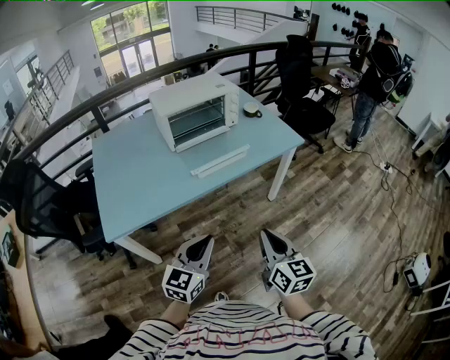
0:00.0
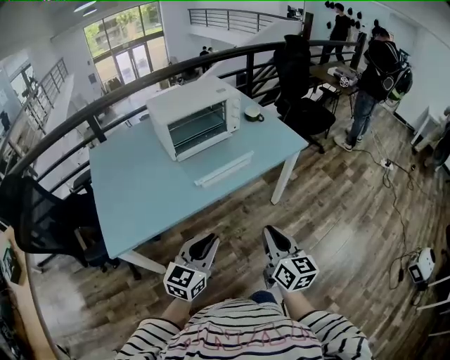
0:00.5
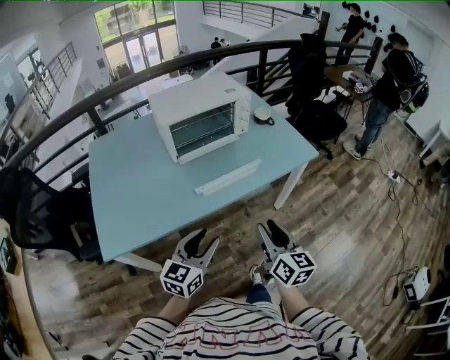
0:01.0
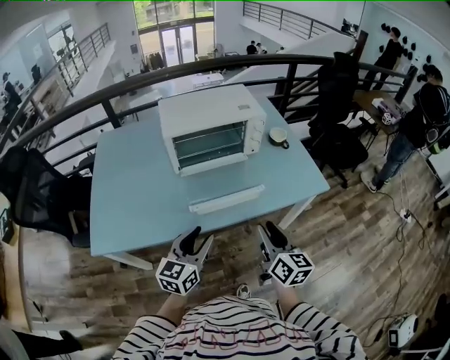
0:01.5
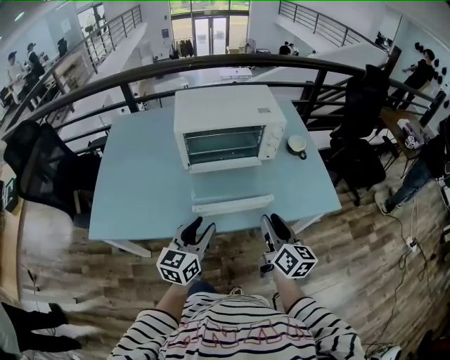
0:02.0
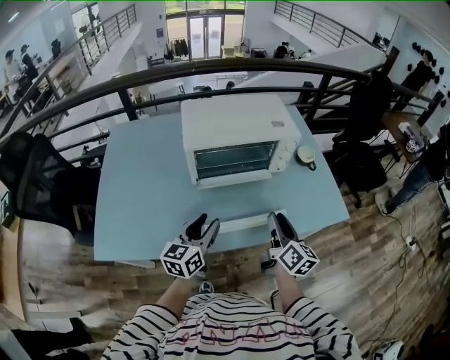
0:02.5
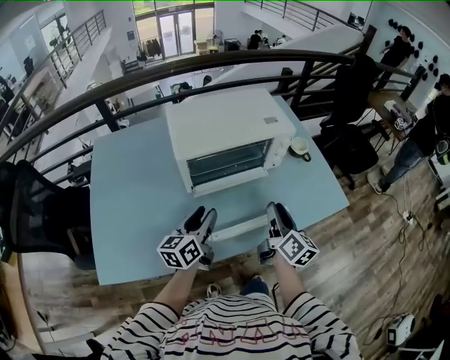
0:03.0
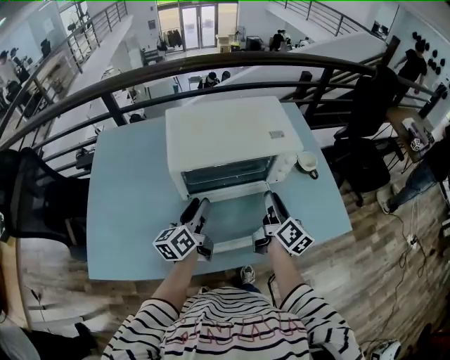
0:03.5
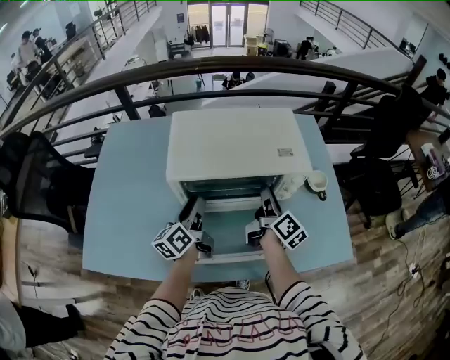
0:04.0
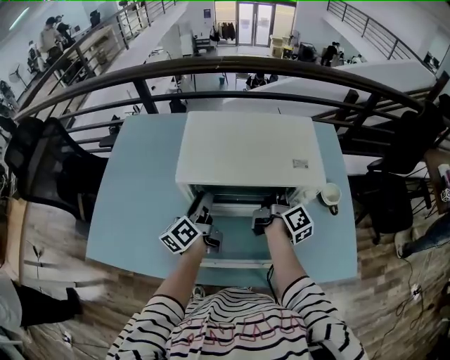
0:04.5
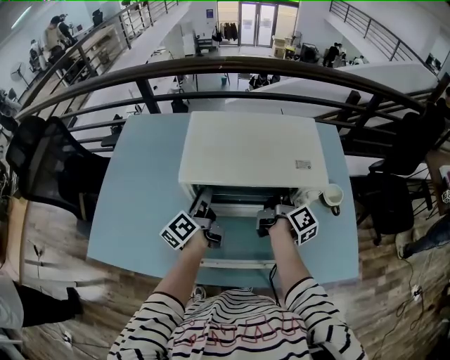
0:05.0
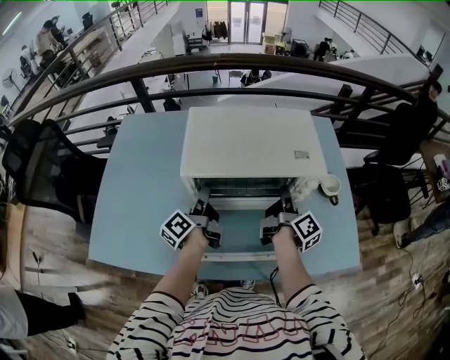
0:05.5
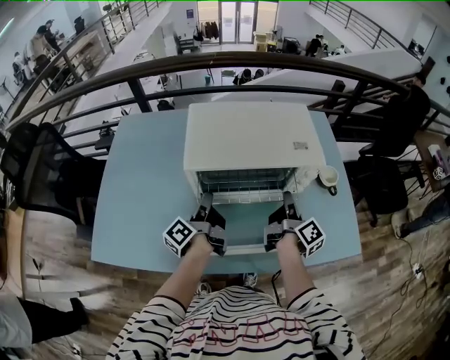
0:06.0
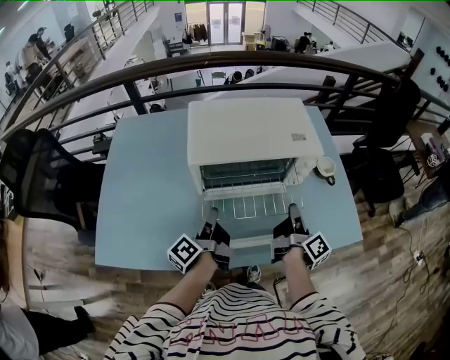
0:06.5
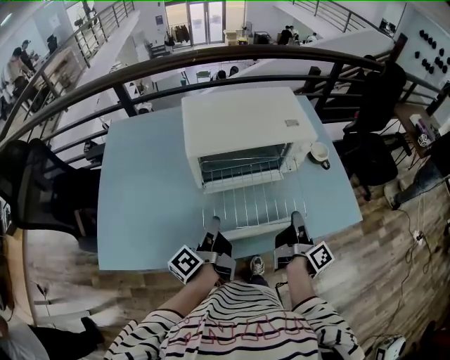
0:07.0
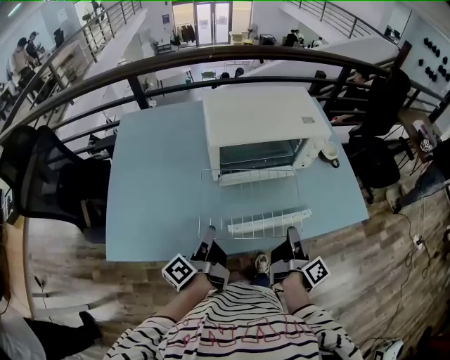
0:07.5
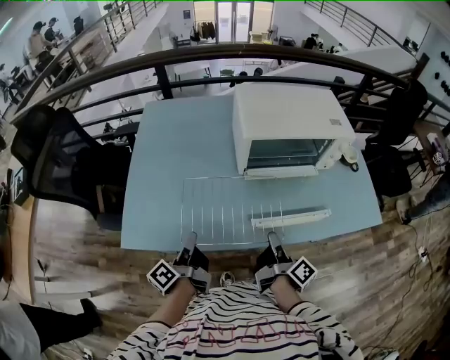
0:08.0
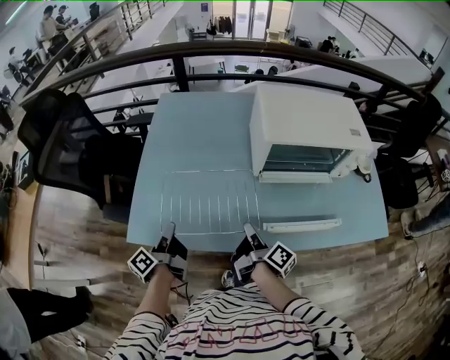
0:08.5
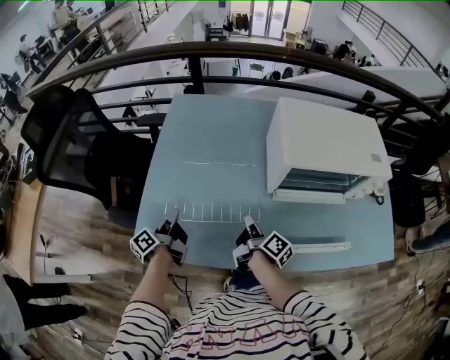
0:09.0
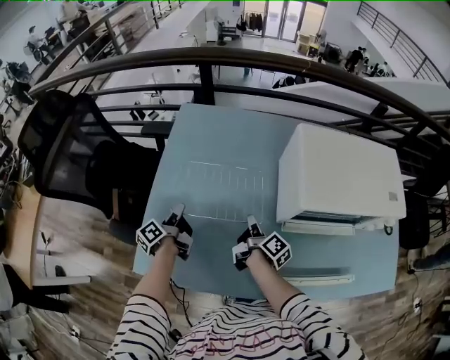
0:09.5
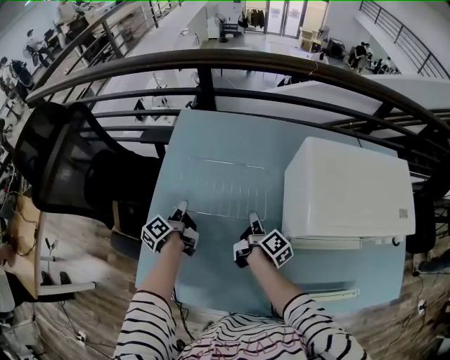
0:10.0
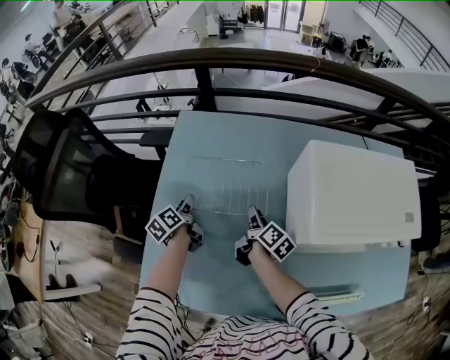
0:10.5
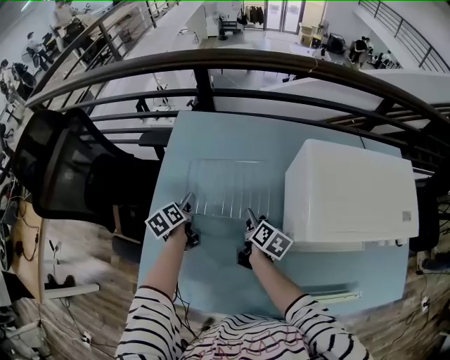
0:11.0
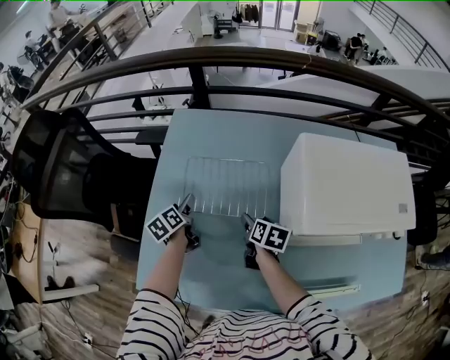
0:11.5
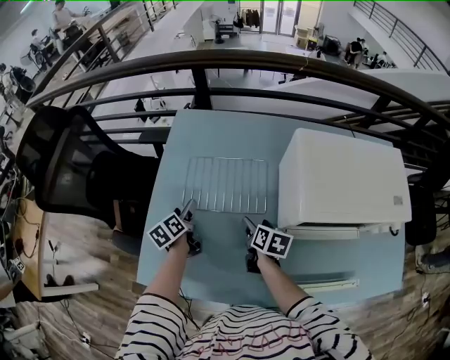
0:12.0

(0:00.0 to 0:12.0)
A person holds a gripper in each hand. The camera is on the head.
0:00.0 - 0:02.0: Both grippers move forward, roughly 35 cm. The right gripper changes its angle by approximately 20 degrees, and opens; the left gripper turns by about 30 degrees, and opens up.
0:02.0 - 0:04.0: Both grippers travel together forward, approximately 35 cm. The right gripper changes its angle by approximately 30 degrees, while the left gripper turns by about 40 degrees.
0:04.0 - 0:06.0: The right gripper ends up roughly 5 cm from where it was, while the left gripper rotates approximately 40 degrees, and closes up.
0:06.0 - 0:08.0: Both grippers travel together backward and to the left, about 35 cm.
0:08.0 - 0:10.0: The two grippers travel together, forward and to the left, roughly 40 cm. The left gripper rotates about 20 degrees.
0:10.0 - 0:12.0: The right gripper turns by about 50 degrees, and opens its fingers; the left gripper changes its angle by roughly 30 degrees, and opens up.

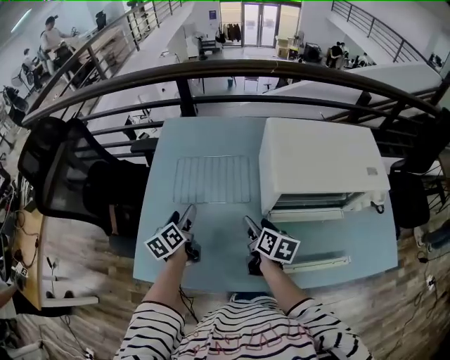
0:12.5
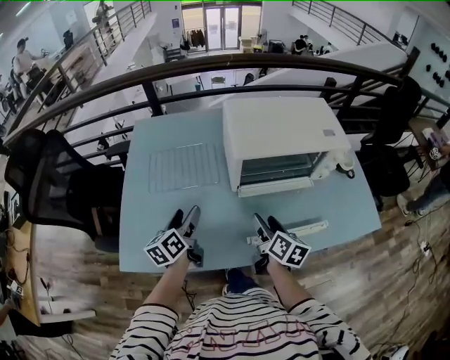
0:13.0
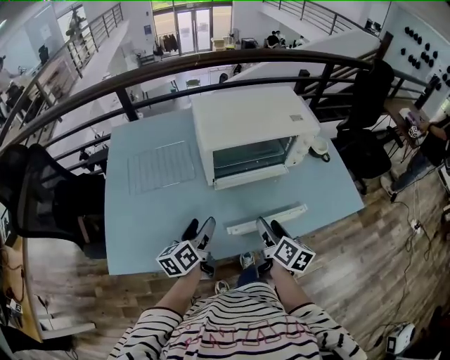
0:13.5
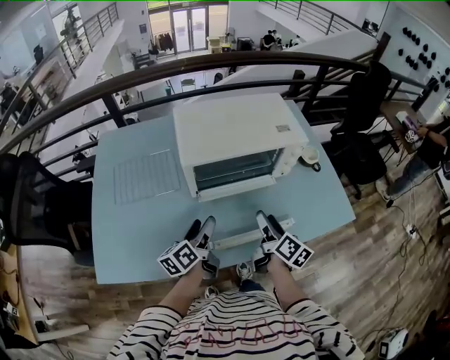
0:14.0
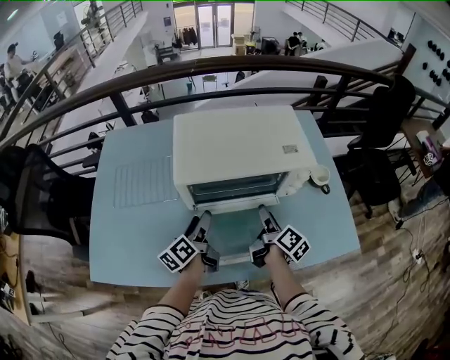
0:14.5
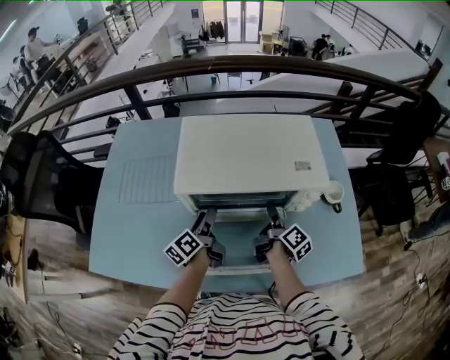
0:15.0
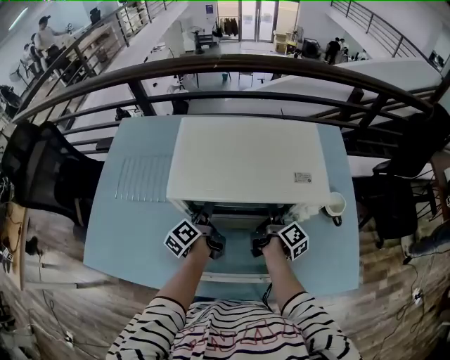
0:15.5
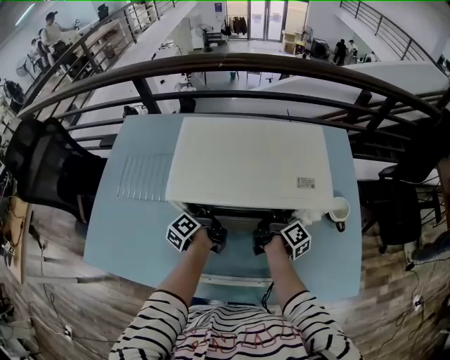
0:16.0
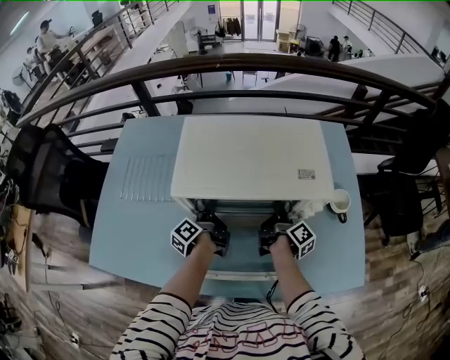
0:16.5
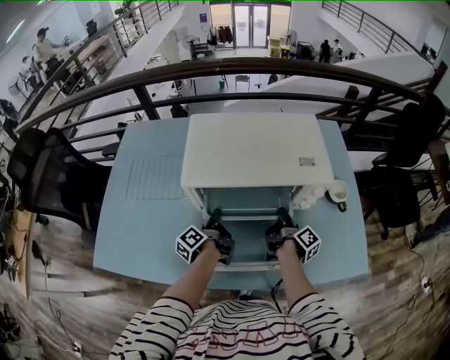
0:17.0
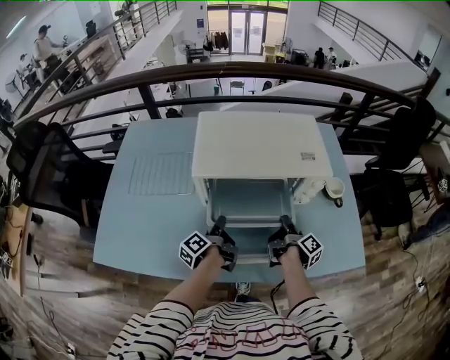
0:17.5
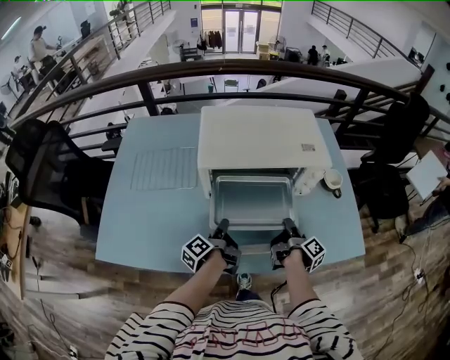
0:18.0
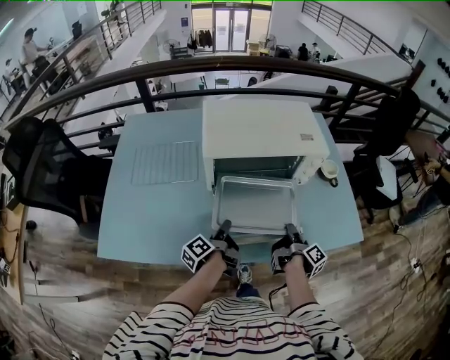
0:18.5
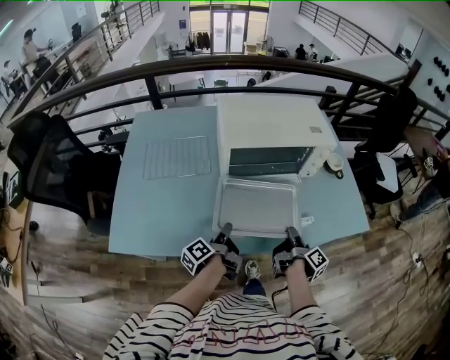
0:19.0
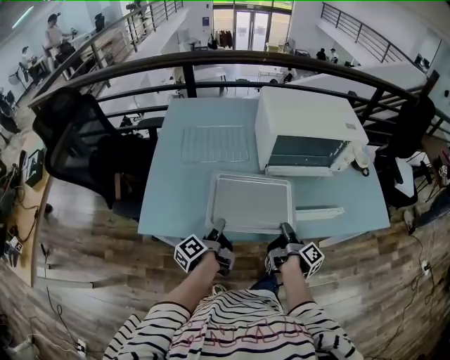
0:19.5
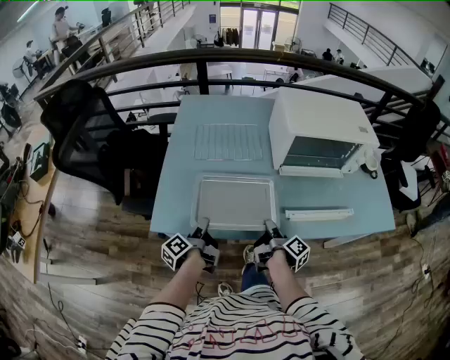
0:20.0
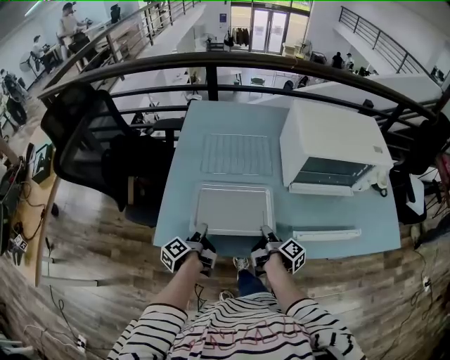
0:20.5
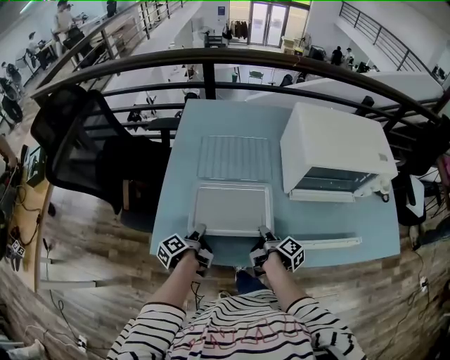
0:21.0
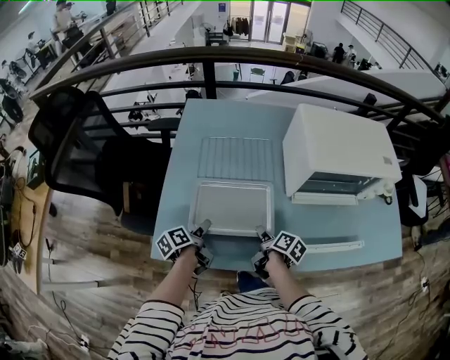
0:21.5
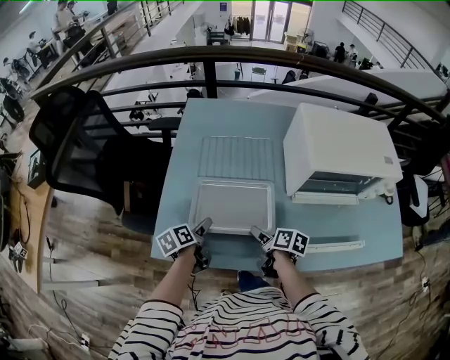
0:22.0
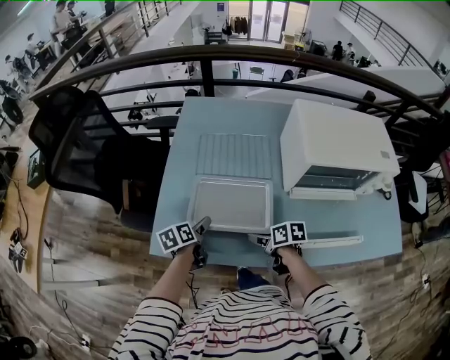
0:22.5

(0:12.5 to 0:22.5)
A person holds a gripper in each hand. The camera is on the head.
0:12.5 - 0:14.5: The grippers both shift to the right by approximately 35 cm. The right gripper swivels some 40 degrees; the left gripper turns by about 20 degrees.
0:14.5 - 0:16.5: The left gripper travels forward and downward by about 10 cm, turns by roughly 30 degrees, and closes up. Meanwhile the right gripper heads forward, covering about 10 cm, and closes up.
0:16.5 - 0:18.5: Both grippers move backward, some 25 cm.
0:18.5 - 0:20.5: The grippers both shift to the left by about 40 cm. The right gripper turns by about 20 degrees.
0:20.5 - 0:22.5: The left gripper travels forward by roughly 5 cm, rotates approximately 50 degrees, and opens up, while the right gripper turns by approximately 70 degrees, and opens.

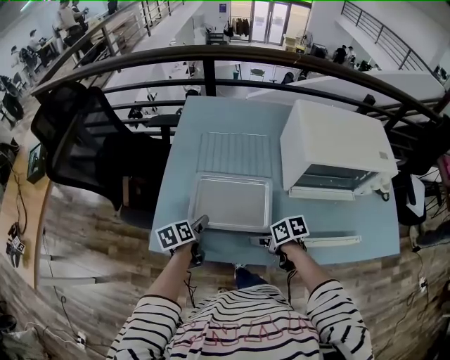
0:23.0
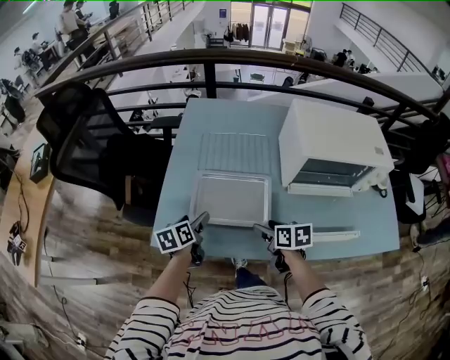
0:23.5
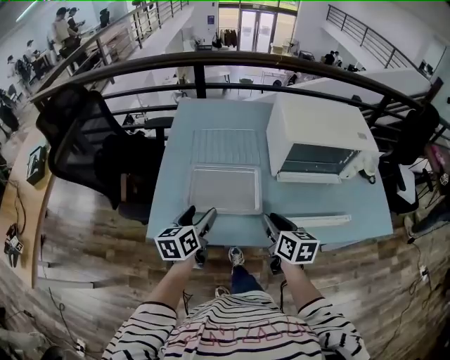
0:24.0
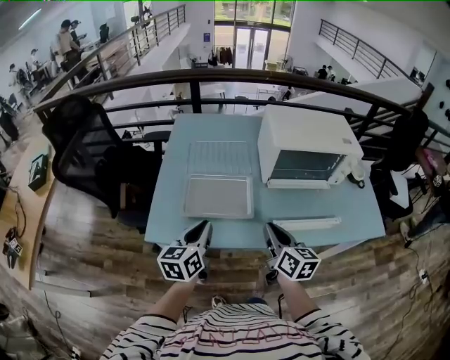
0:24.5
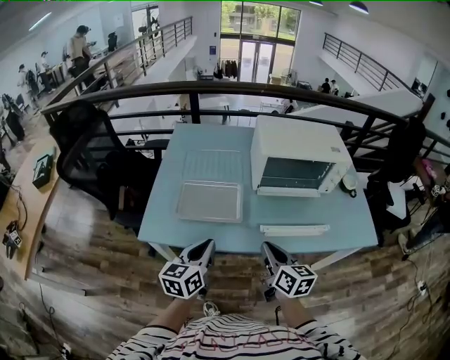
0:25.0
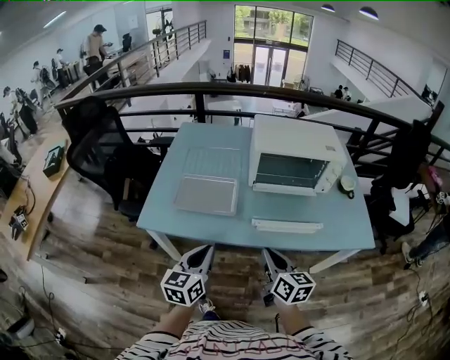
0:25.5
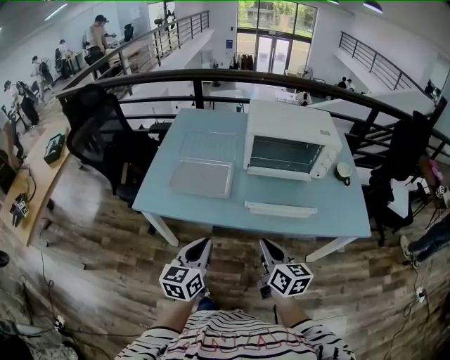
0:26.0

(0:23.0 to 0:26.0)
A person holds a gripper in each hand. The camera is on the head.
0:23.0 - 0:24.5: Both grippers travel together upward, roughly 20 cm. The left gripper turns by about 40 degrees, and closes up, while the right gripper tips its fingers upward by approximately 30 degrees, and closes up.
0:24.5 - 0:26.0: The grippers both shift backward and to the right by approximately 20 cm.

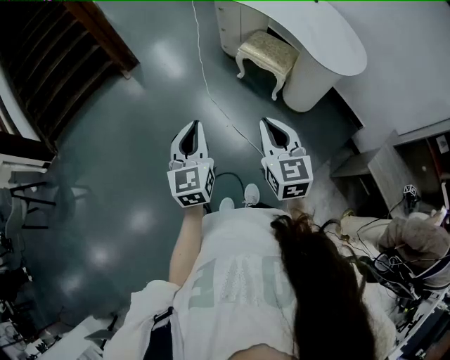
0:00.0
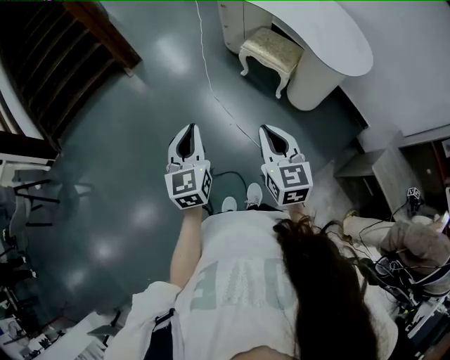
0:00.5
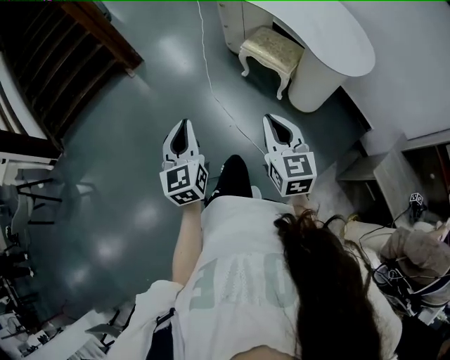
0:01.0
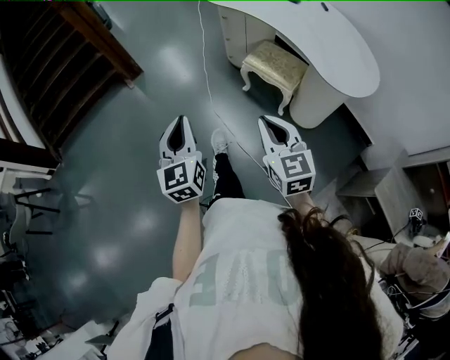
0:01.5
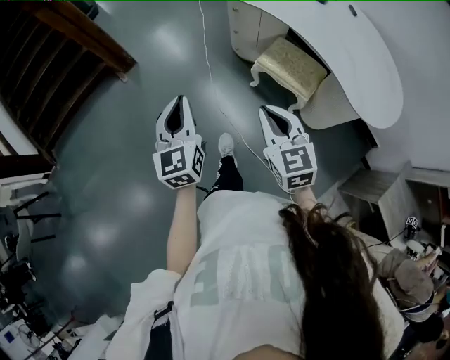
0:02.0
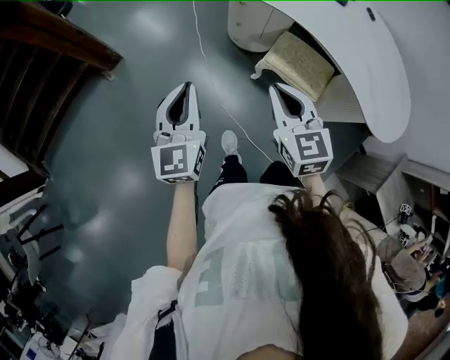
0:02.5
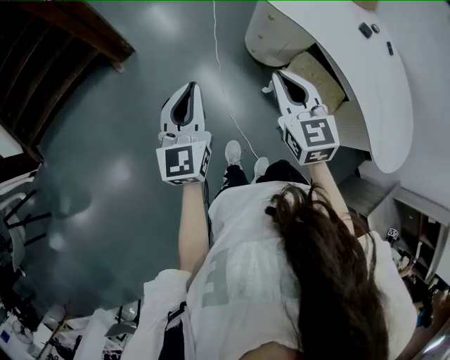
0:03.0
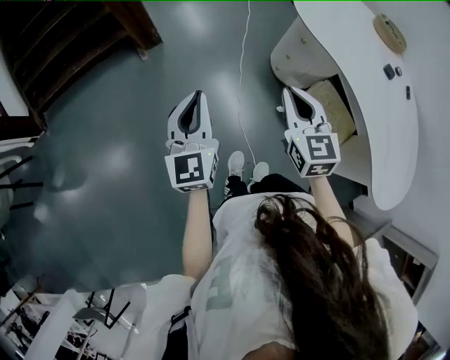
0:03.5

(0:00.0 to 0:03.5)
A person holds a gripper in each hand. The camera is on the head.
0:00.0 - 0:02.0: Both grippers travel together forward, roughly 35 cm.
0:02.0 - 0:03.5: The grippers both shift forward and to the left by approximately 30 cm.
